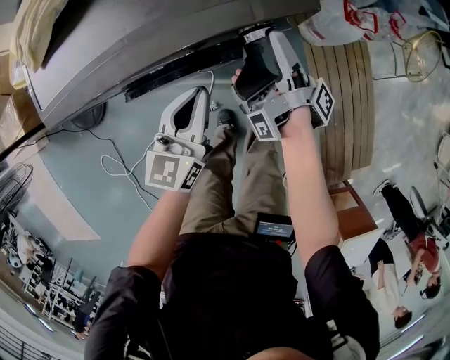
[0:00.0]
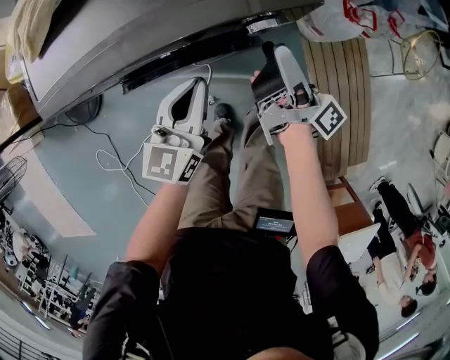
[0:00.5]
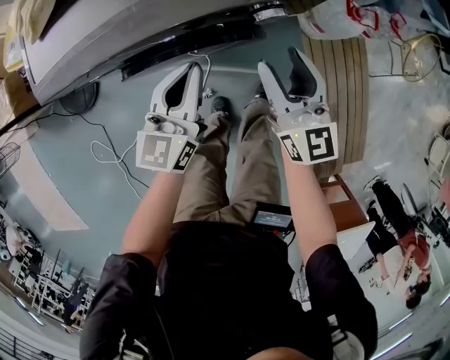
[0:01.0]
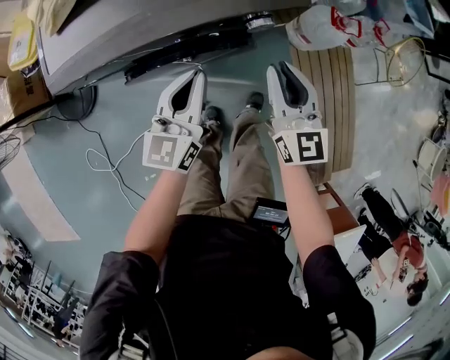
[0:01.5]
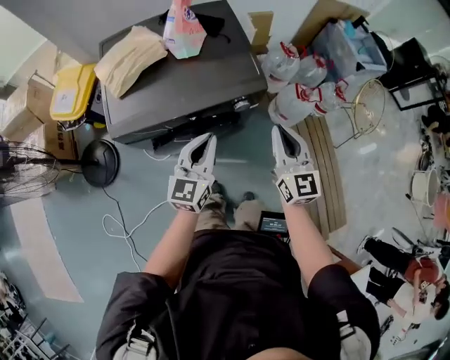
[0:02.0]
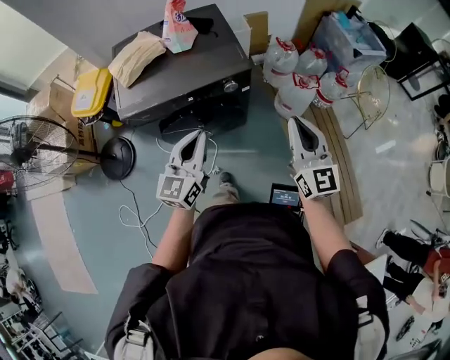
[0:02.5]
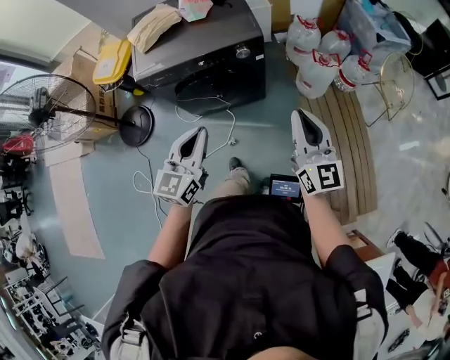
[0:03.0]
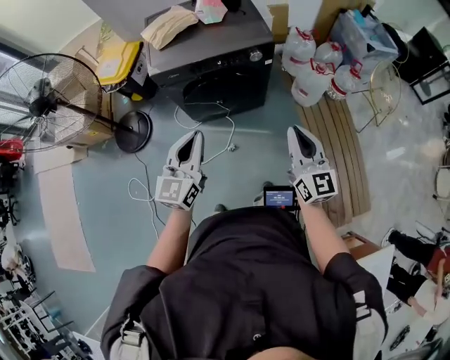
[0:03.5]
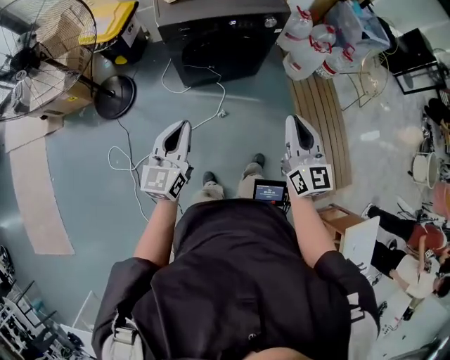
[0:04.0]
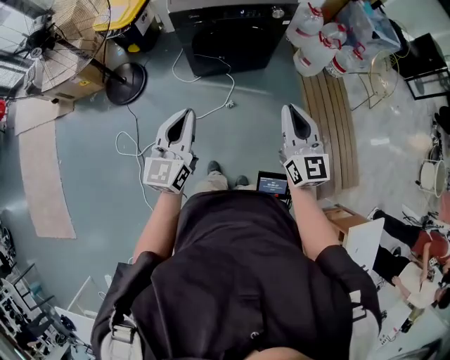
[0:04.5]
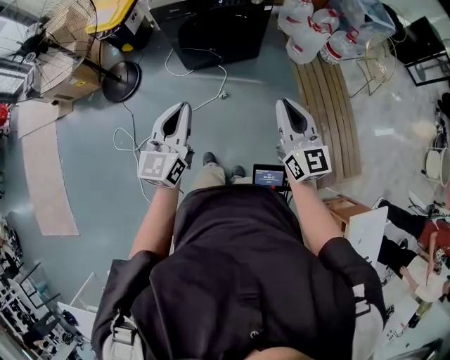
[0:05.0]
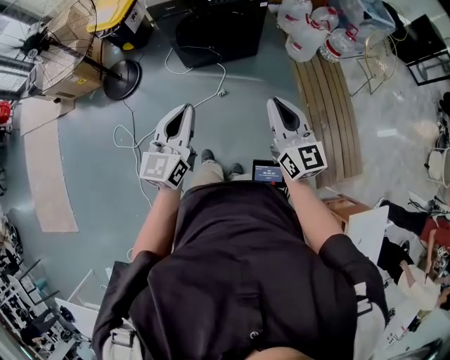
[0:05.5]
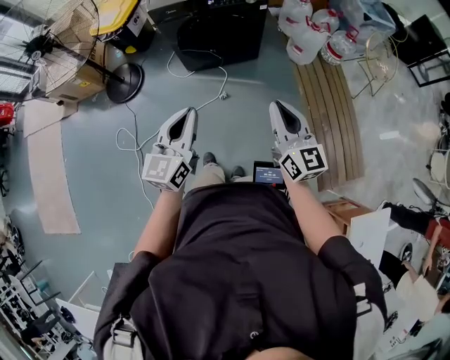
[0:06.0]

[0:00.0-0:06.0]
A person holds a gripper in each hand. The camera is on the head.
0:00.0 to 0:02.0: The right gripper is displaced upward and backward by roughly 25 cm, twists roughly 120 degrees counterclockwise, seen from behind, and closes. The left gripper goes approximately 20 cm upward.
0:02.0 to 0:04.0: The pair of grippers is taken backward, some 40 cm.
0:04.0 to 0:06.0: Both grippers travel together backward and to the right, about 20 cm.

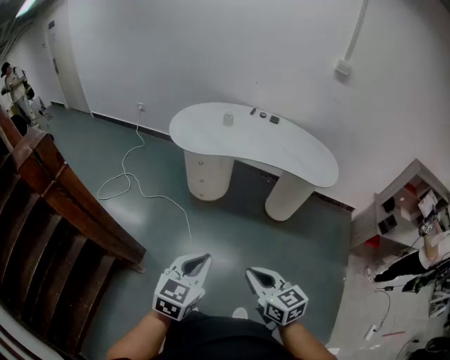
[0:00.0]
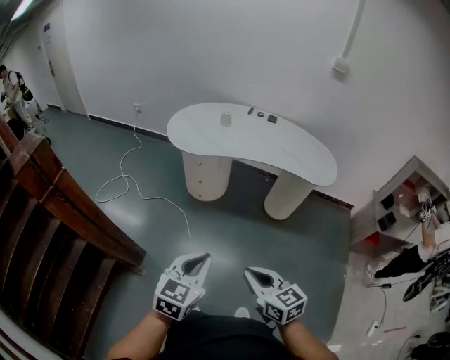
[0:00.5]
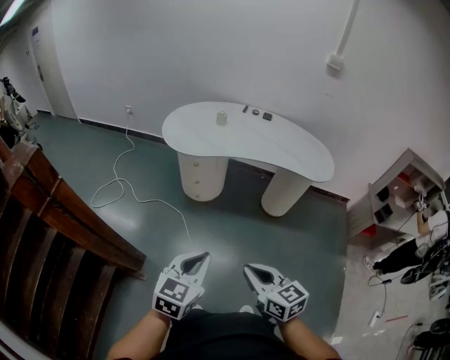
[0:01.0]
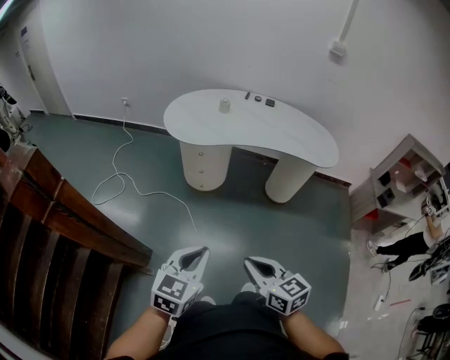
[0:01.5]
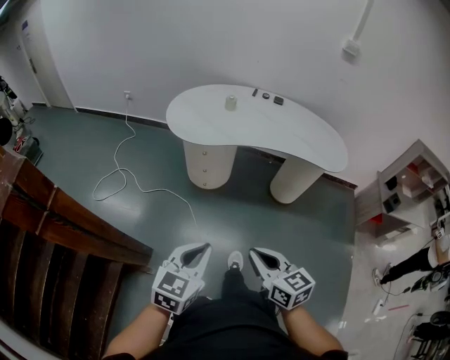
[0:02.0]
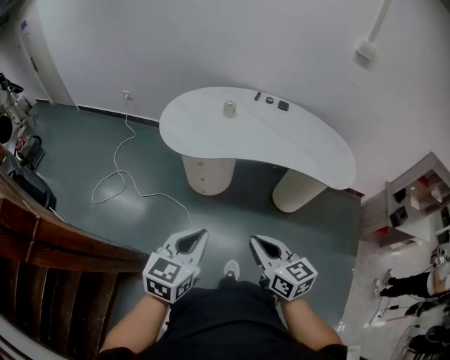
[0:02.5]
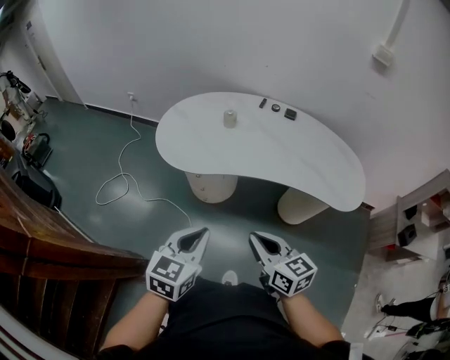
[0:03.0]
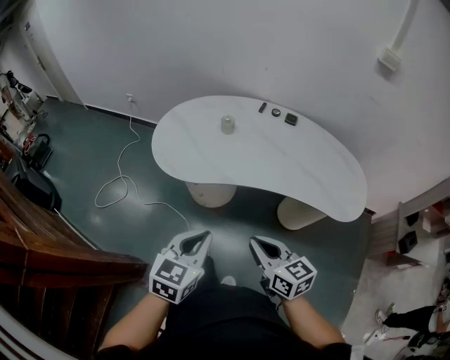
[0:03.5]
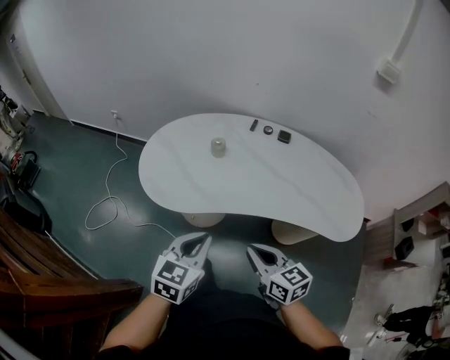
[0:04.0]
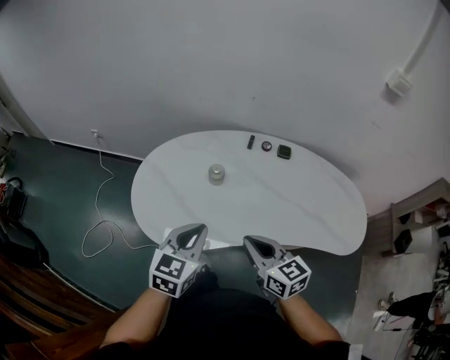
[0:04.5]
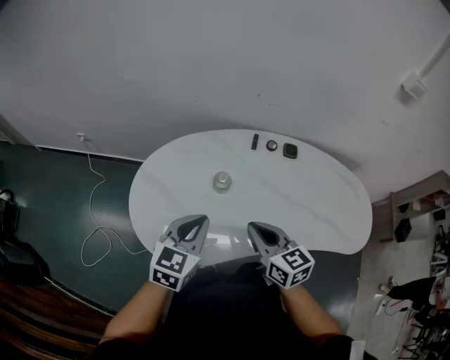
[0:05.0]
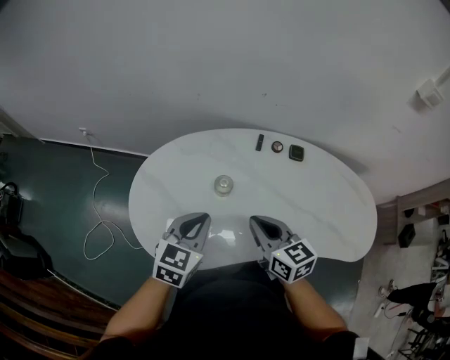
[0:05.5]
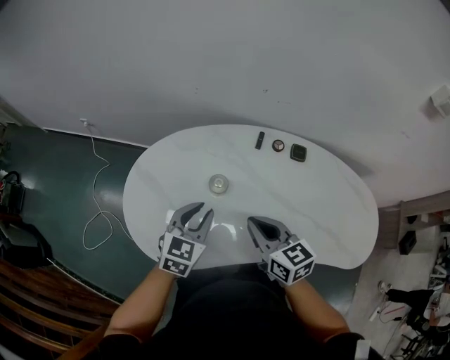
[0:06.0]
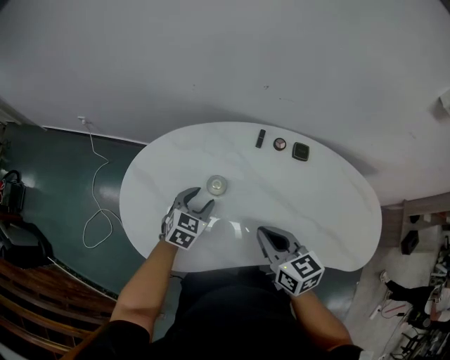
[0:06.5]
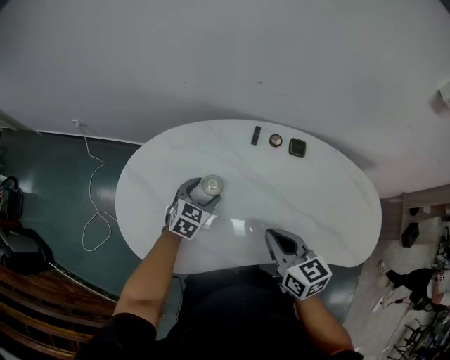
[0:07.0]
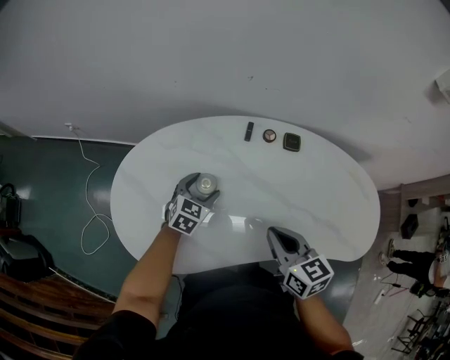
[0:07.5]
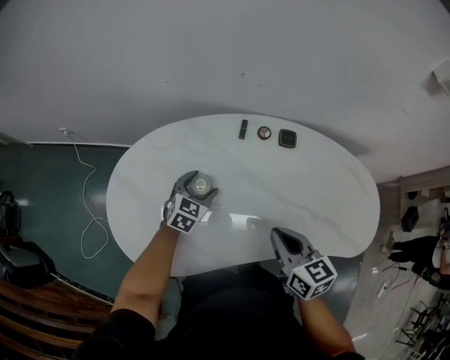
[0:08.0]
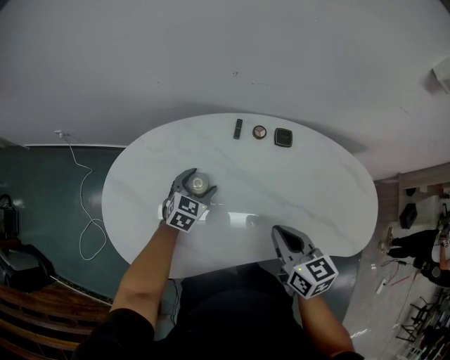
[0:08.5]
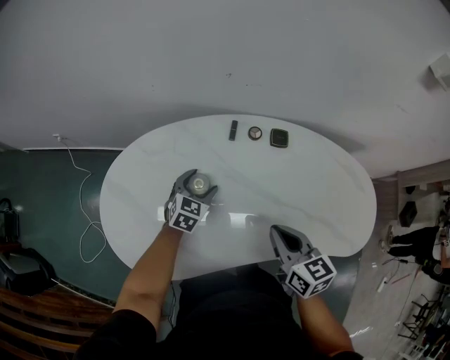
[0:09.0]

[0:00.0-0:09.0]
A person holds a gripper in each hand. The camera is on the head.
0:00.0 to 0:02.0: The left gripper goes some 15 cm to the left and forward, while the right gripper travels forward and to the left by roughly 15 cm.
0:02.0 to 0:04.5: The two grippers travel together, forward, approximately 60 cm.
0:04.5 to 0:07.0: The left gripper goes some 35 cm forward and downward, and opens, while the right gripper travels forward and to the right by approximately 15 cm.
0:07.0 to 0:09.0: The grippers both shift to the right by about 5 cm.

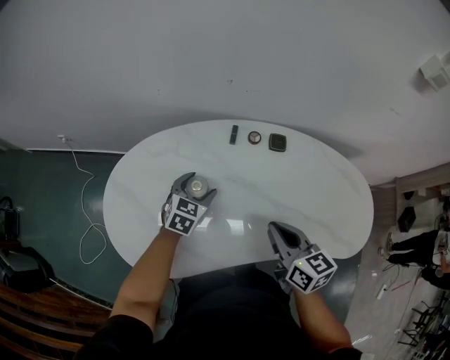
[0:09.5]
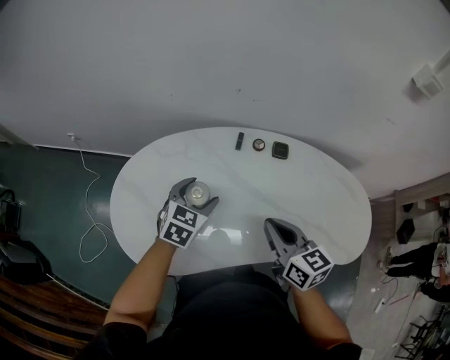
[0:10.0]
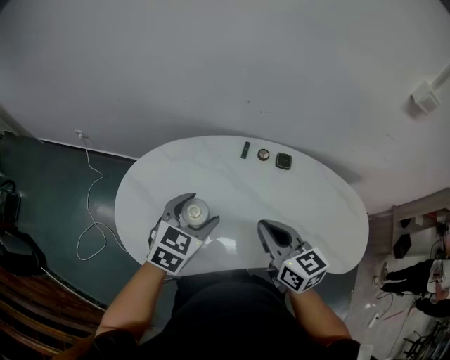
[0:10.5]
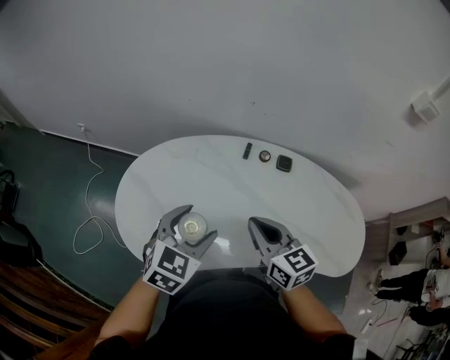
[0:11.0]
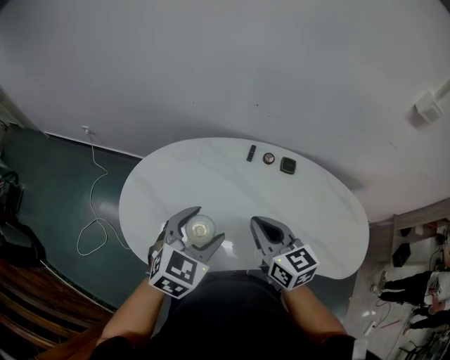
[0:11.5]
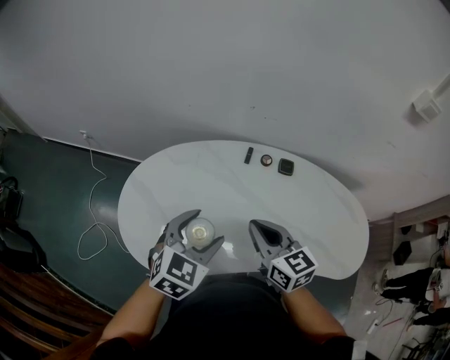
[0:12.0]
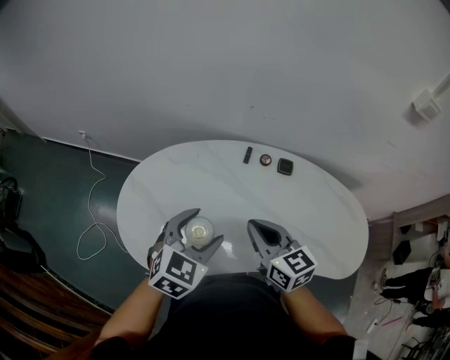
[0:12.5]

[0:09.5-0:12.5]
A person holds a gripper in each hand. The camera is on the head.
0:09.5 to 0:11.0: The right gripper heads to the left and upward, covering about 10 cm; the left gripper moves upward and backward, about 25 cm.
0:11.0 to 0:12.5: The grippers make only small movements.

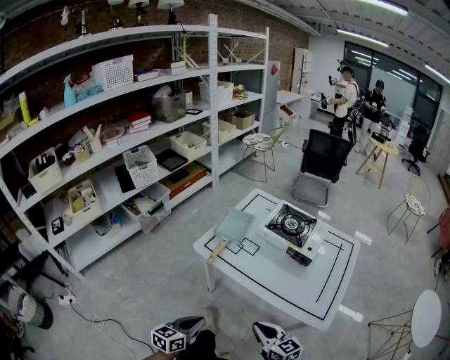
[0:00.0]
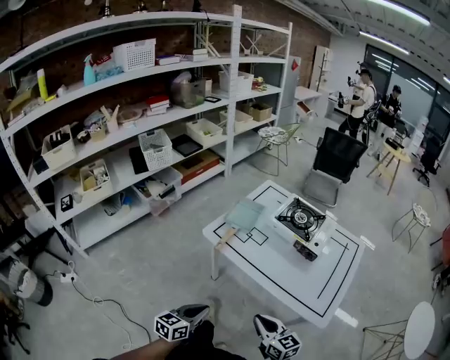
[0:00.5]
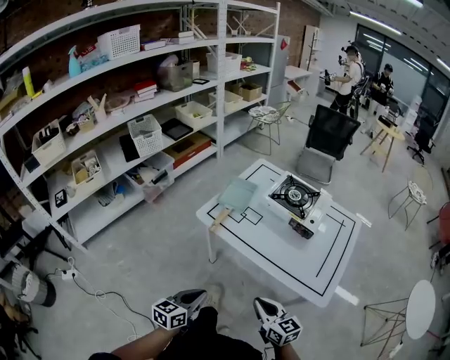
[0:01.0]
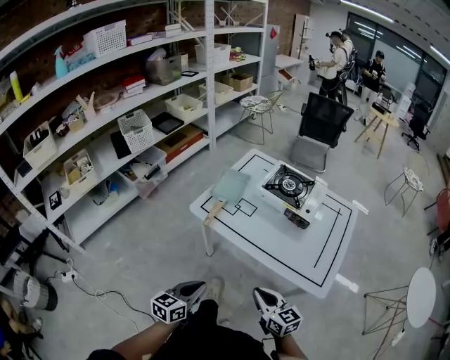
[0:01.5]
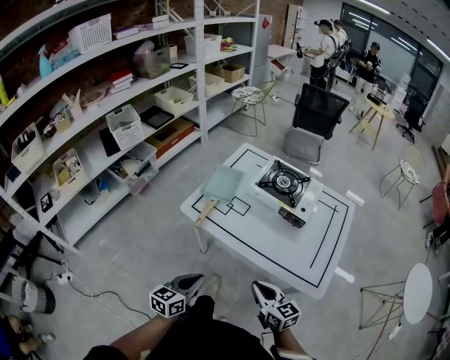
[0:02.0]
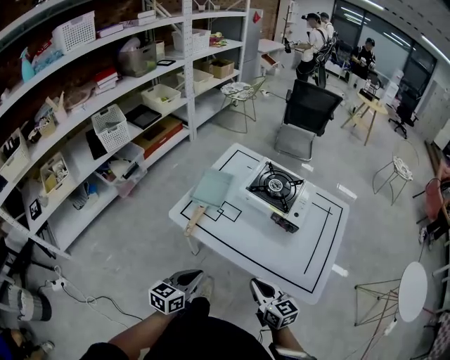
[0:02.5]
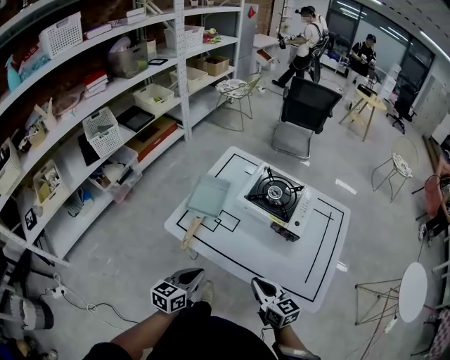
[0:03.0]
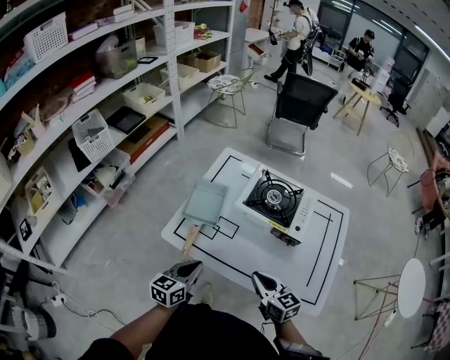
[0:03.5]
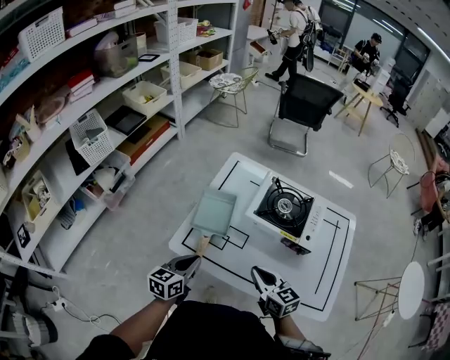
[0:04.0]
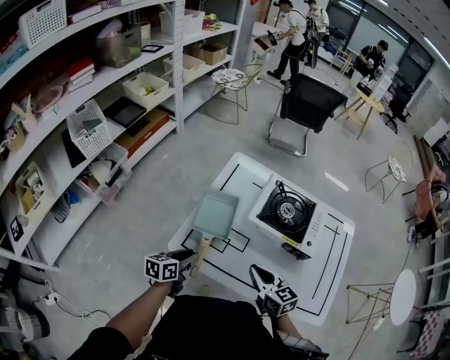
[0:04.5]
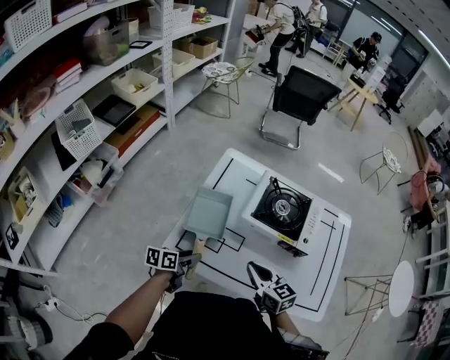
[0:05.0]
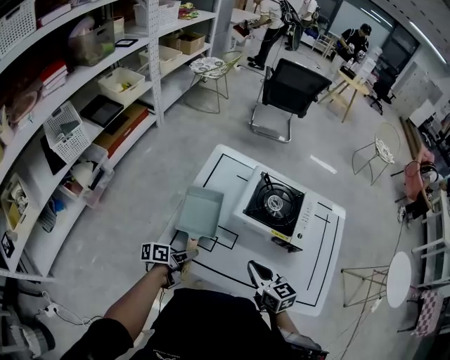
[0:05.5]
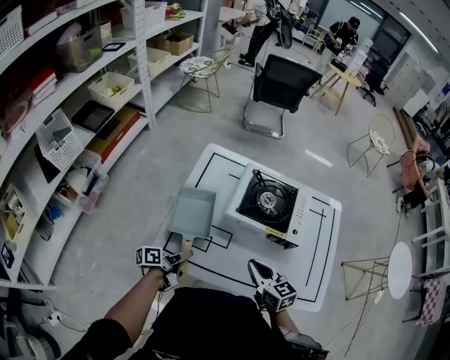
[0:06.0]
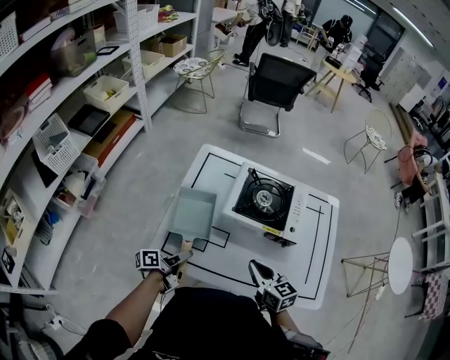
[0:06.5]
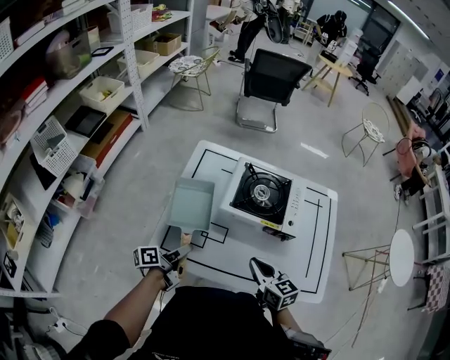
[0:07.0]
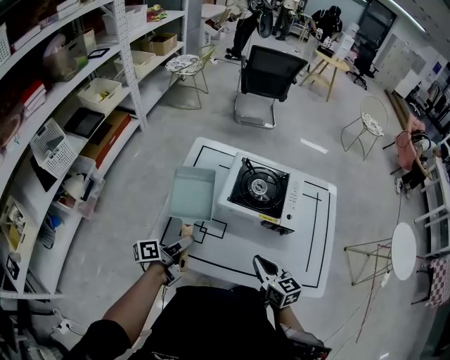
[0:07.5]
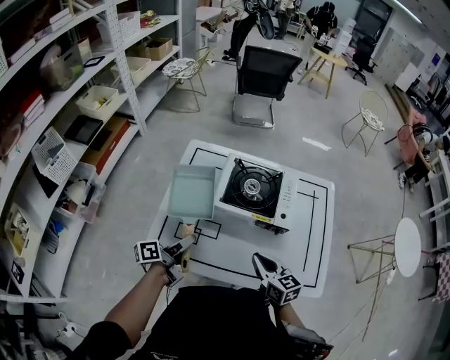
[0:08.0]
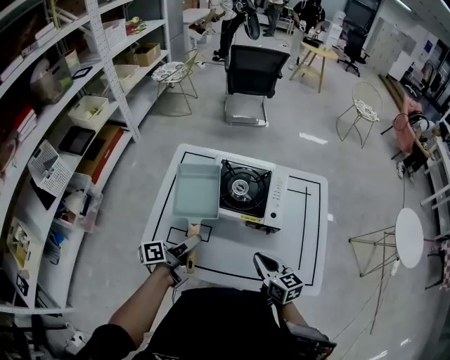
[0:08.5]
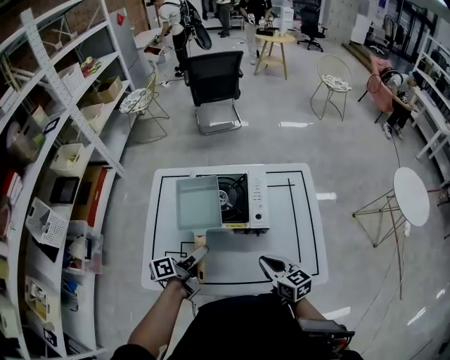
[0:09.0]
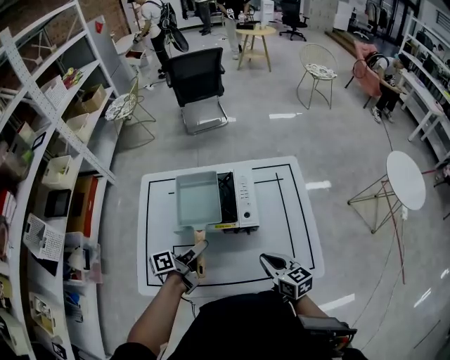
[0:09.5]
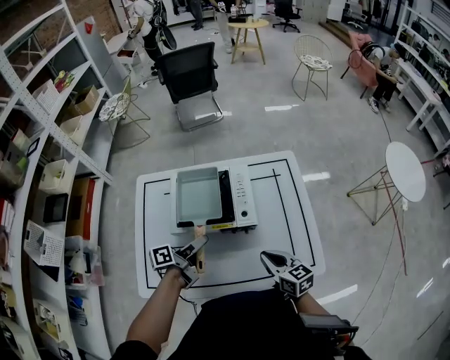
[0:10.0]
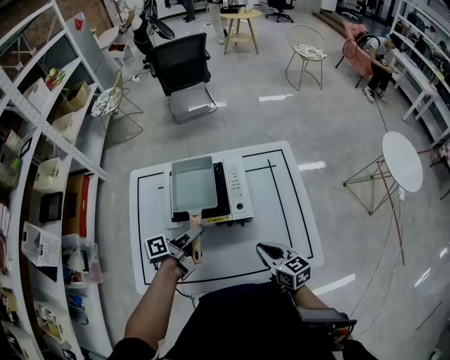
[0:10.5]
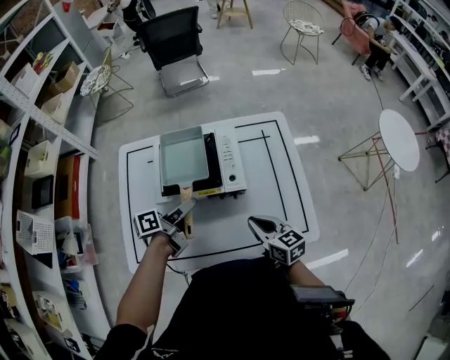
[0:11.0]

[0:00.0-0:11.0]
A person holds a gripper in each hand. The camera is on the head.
0:00.0 to 0:02.0: The left gripper travels forward by approximately 5 cm.
0:02.0 to 0:03.5: The grippers both shift forward by some 15 cm.
0:03.5 to 0:05.5: The right gripper shifts roughly 10 cm forward. The left gripper shifts approximately 15 cm forward and downward, rolls counterclockwise, seen from behind, by approximately 40 degrees, and opens.
0:05.5 to 0:07.5: The right gripper is displaced to the right by some 5 cm; the left gripper goes roughly 10 cm upward.
0:07.5 to 0:09.0: The right gripper goes about 10 cm to the right. The left gripper heads to the right, covering approximately 15 cm.
0:09.0 to 0:11.0: The left gripper moves forward, some 5 cm.
